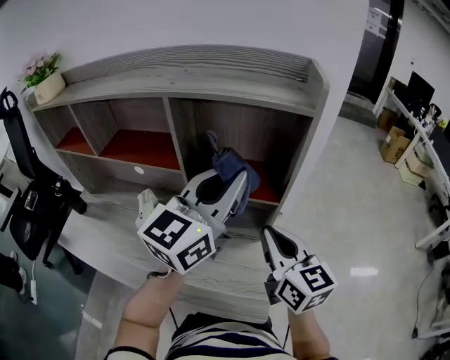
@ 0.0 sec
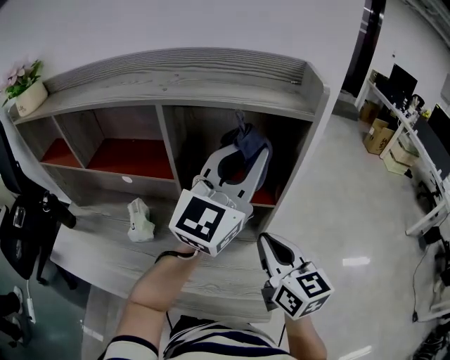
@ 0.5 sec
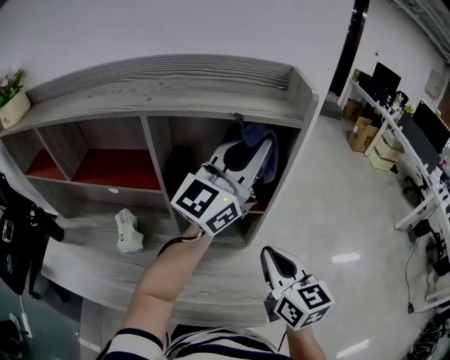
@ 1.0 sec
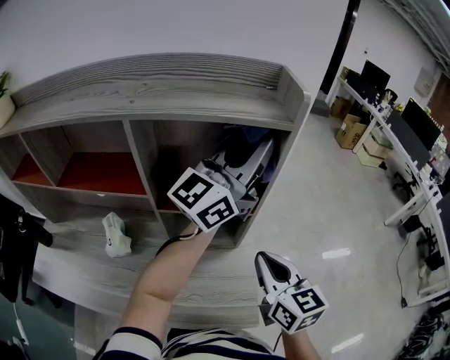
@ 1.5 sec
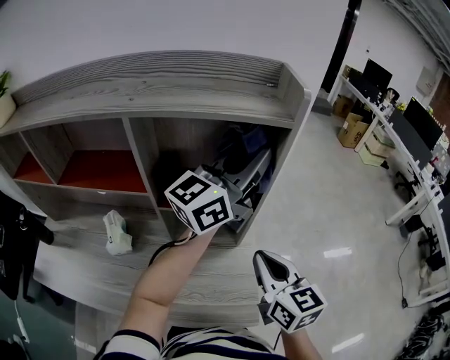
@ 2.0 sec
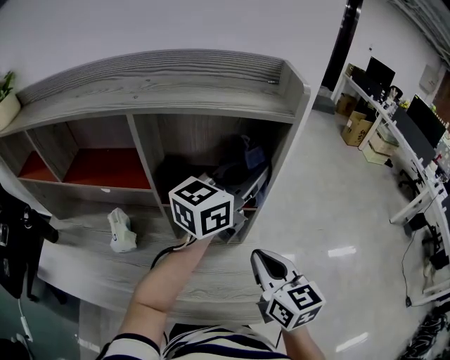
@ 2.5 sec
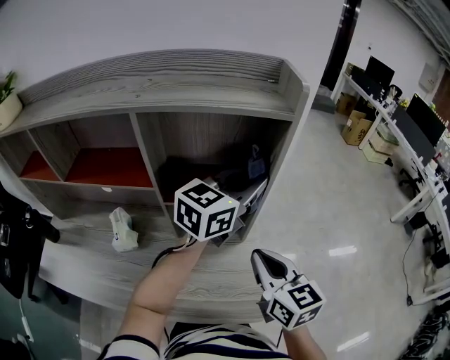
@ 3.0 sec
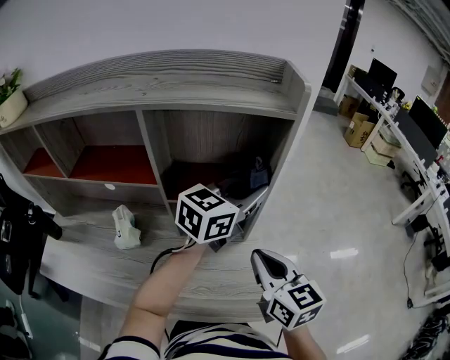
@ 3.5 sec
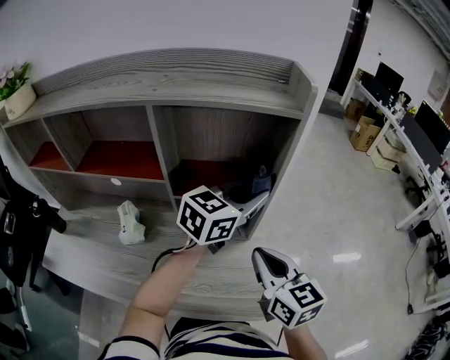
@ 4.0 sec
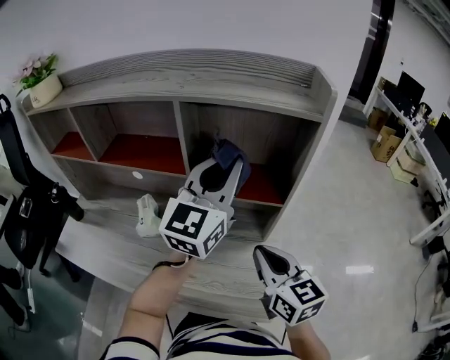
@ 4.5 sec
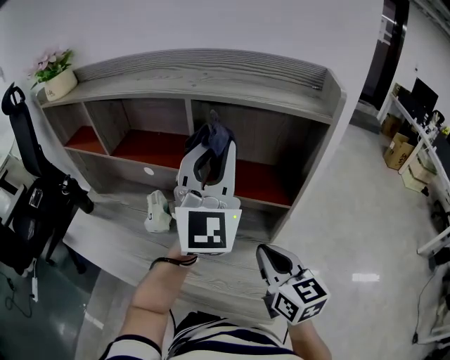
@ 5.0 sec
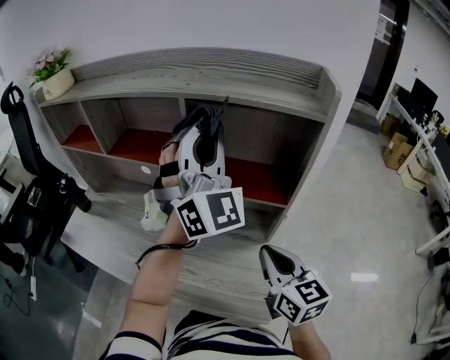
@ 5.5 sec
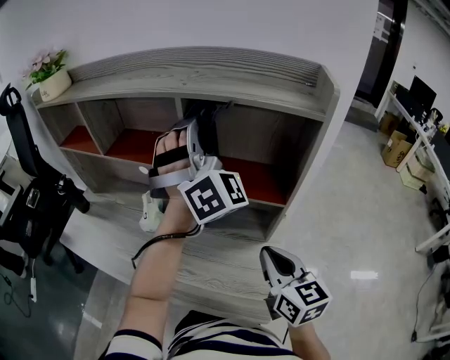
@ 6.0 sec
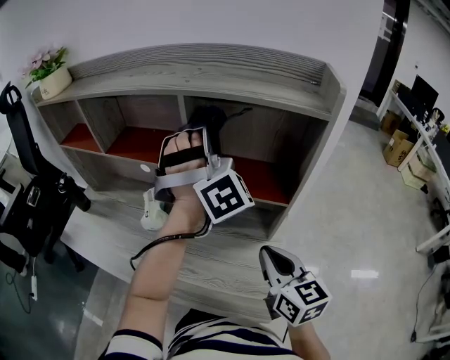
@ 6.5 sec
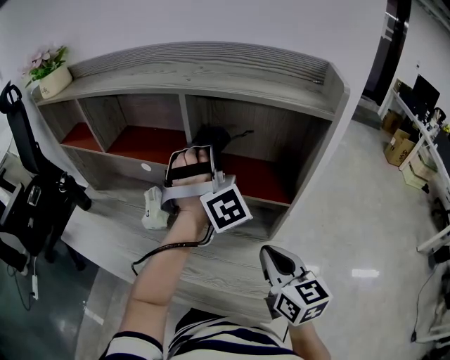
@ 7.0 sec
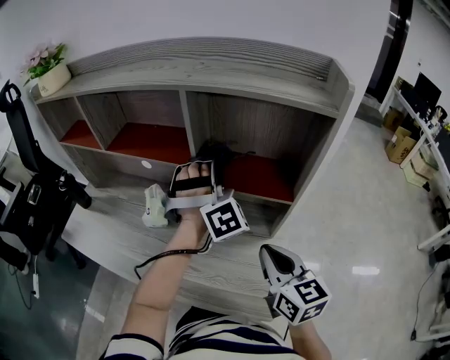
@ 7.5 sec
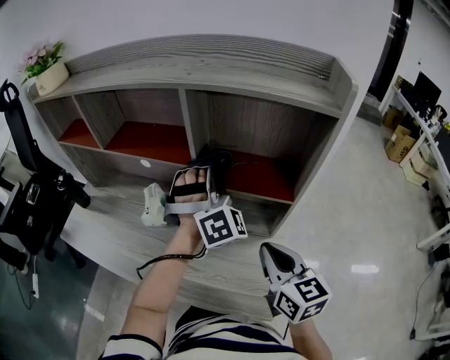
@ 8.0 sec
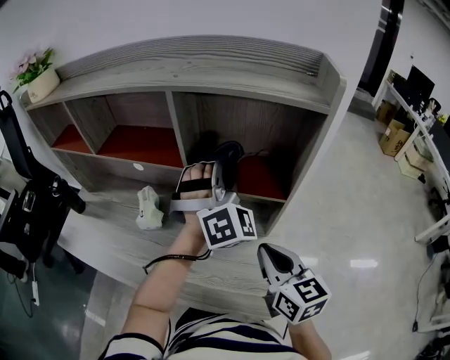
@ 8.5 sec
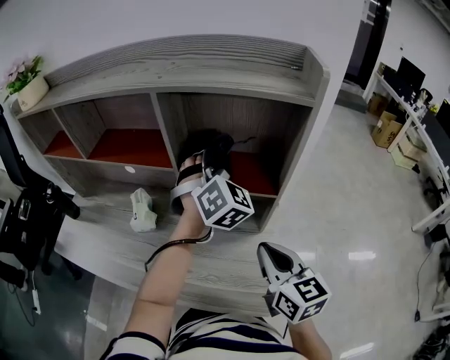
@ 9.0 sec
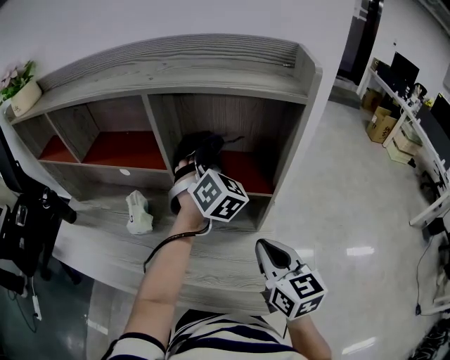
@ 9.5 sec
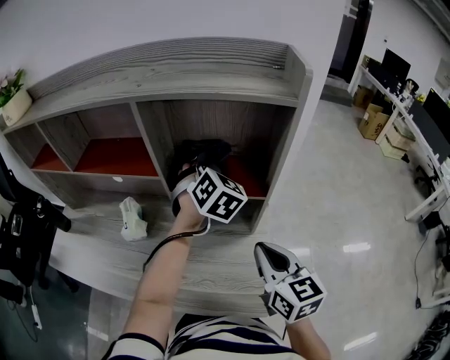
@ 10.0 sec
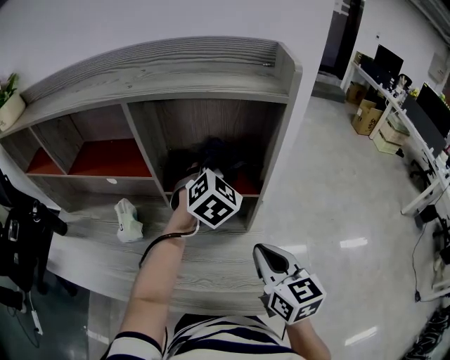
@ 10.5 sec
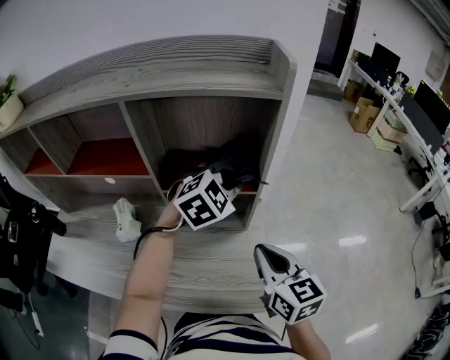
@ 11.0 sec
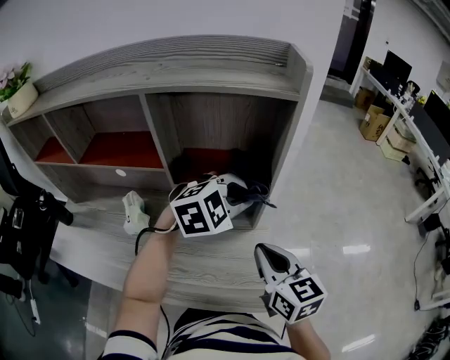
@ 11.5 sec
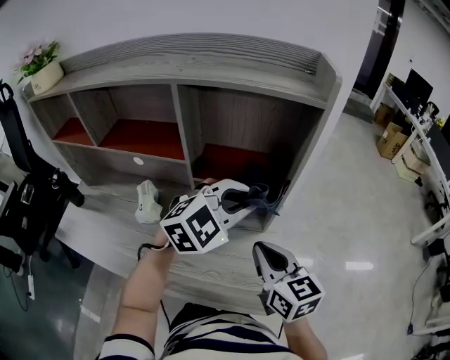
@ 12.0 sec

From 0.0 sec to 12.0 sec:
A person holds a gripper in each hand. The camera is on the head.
From 0.0 sec to 2.0 sec: The left gripper shifts about 10 cm forward and to the right, and swivels about 30 degrees.
From 2.0 sec to 4.0 sec: The left gripper moves downward, approximately 10 cm, and angles its fingers downward, by roughly 30 degrees.
From 4.0 sec to 6.0 sec: The left gripper ends up approximately 25 cm from where it was, and changes its angle by approximately 100 degrees.
From 6.0 sec to 8.0 sec: The left gripper is displaced downward by roughly 15 cm.
From 8.0 sec to 10.0 sec: The left gripper travels to the right by approximately 10 cm, and changes its angle by about 40 degrees.
From 10.0 sec to 12.0 sec: The left gripper ends up roughly 15 cm from where it was, and swivels about 40 degrees.

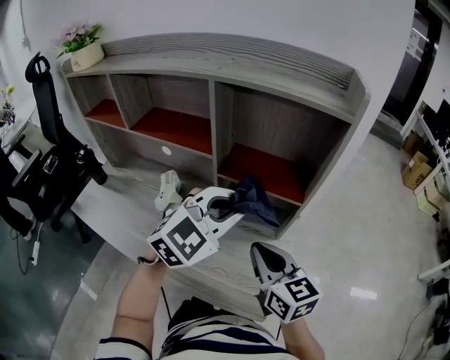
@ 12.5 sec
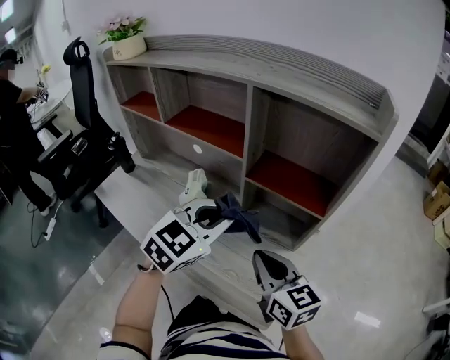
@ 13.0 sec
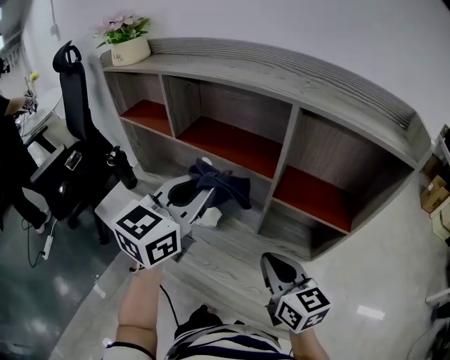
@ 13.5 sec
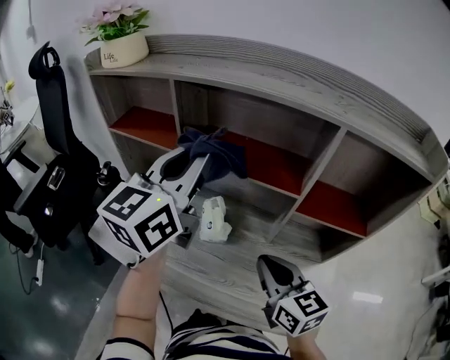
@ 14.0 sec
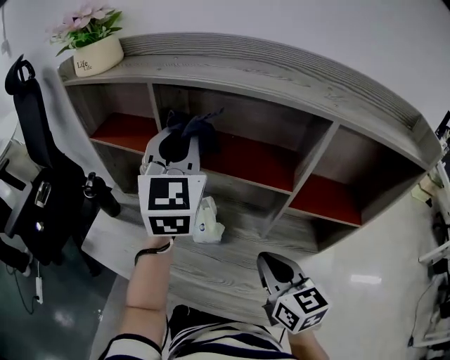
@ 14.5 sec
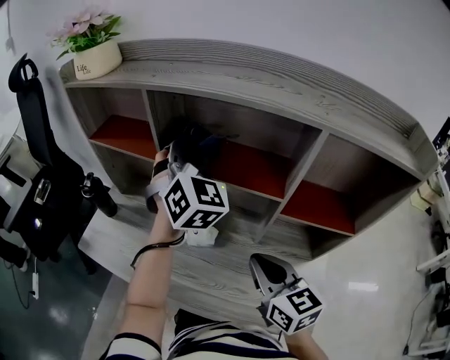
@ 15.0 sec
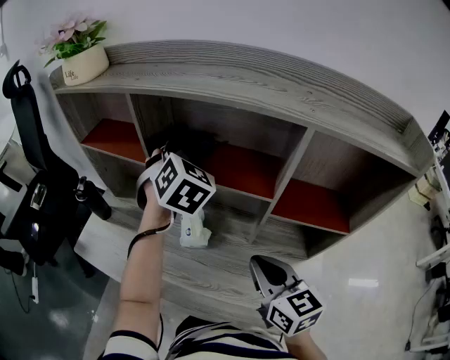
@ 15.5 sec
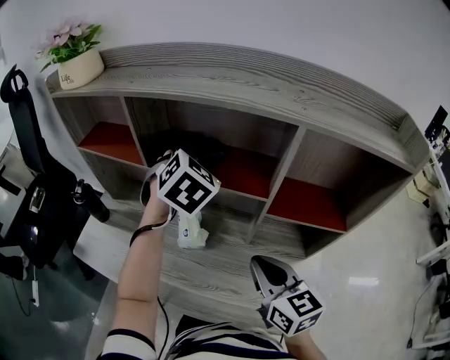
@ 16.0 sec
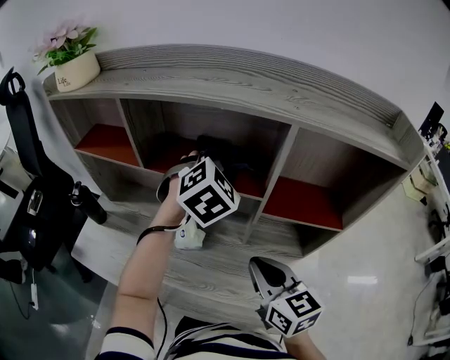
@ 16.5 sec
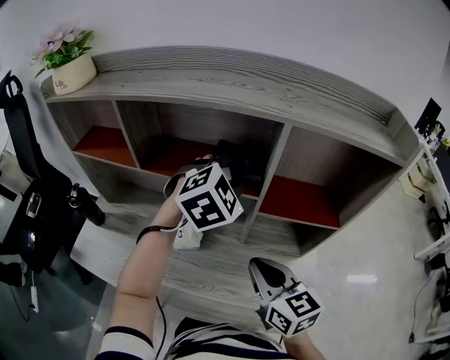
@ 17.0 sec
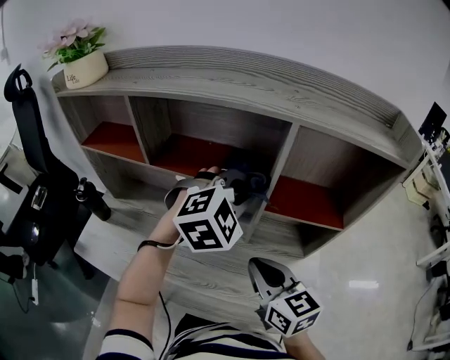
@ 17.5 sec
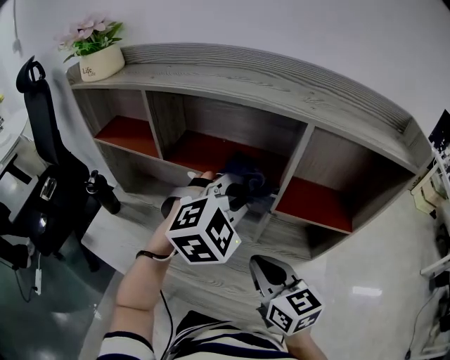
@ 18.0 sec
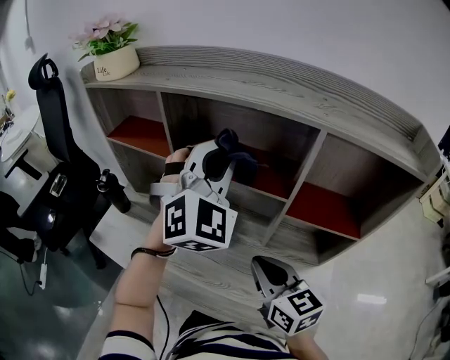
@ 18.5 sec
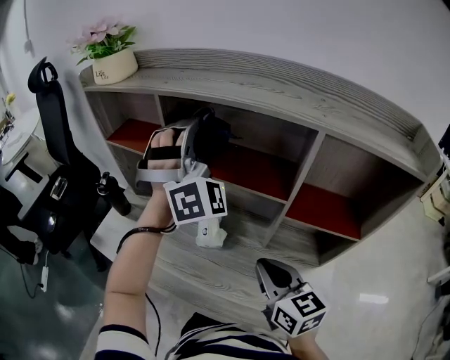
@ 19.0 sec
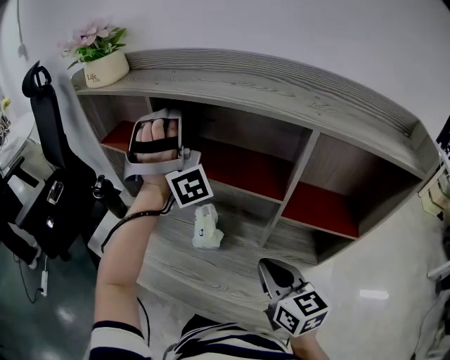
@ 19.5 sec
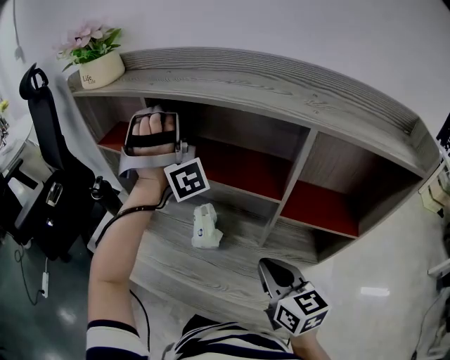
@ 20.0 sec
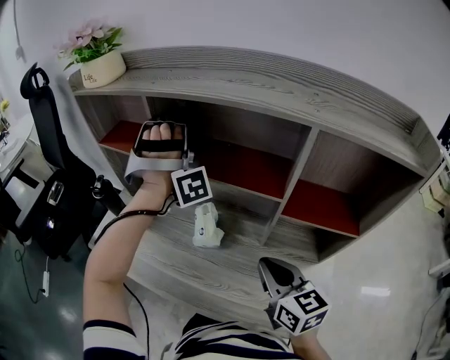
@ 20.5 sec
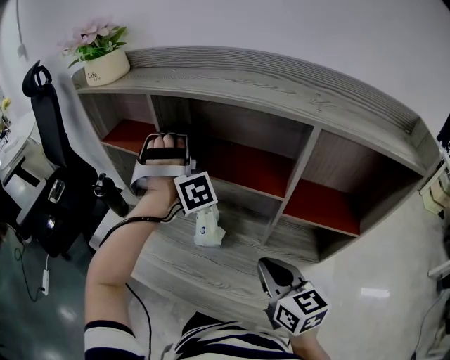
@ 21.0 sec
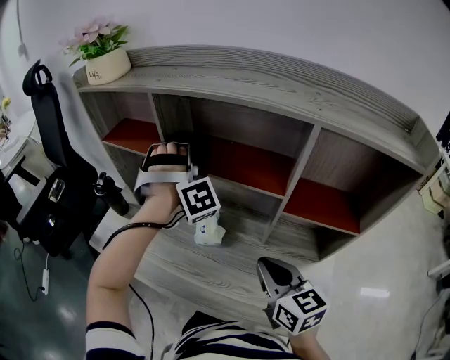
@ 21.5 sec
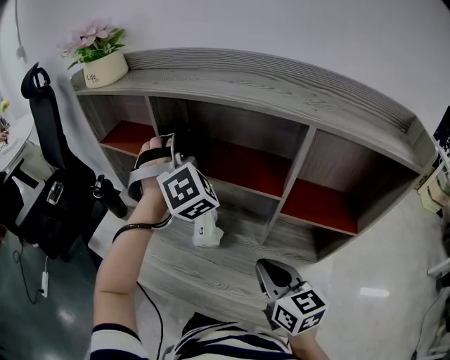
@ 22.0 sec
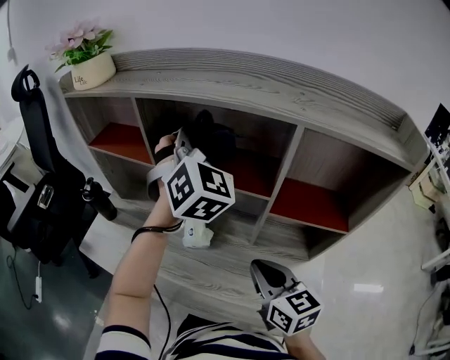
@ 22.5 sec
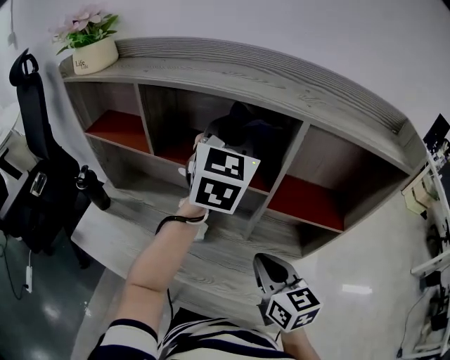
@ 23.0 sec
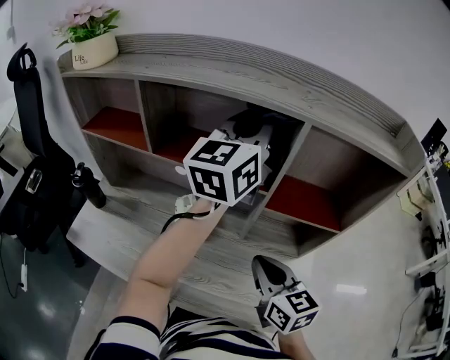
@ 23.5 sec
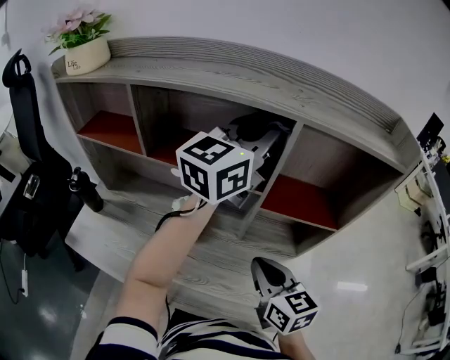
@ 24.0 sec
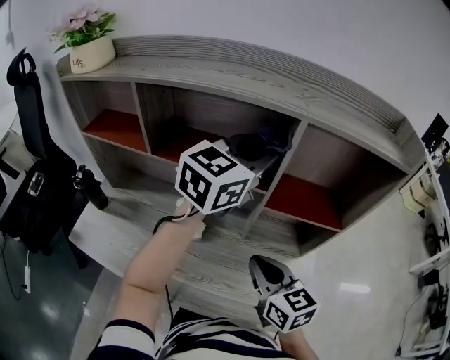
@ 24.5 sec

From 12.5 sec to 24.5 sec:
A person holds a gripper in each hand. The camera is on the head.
From 12.5 sec to 14.5 sec: The right gripper shifts approximately 20 cm to the left. The left gripper goes roughly 40 cm to the left, forward and upward, and changes its angle by some 50 degrees.
From 14.5 sec to 16.5 sec: The left gripper moves to the right and downward, about 20 cm, and points its fingers roughly 40 degrees further downward.
From 16.5 sec to 18.5 sec: The left gripper heads upward, to the left and backward, covering approximately 15 cm, and angles its fingers upward, by roughly 30 degrees.
From 18.5 sec to 20.5 sec: The left gripper goes about 15 cm forward and to the left, and rotates around the line of its fingers by roughly 60 degrees, clockwise from behind.
From 20.5 sec to 22.5 sec: The left gripper heads to the right and backward, covering about 10 cm, goes downward and returns, some 10 cm each way, and twists approximately 70 degrees counterclockwise, seen from behind.
From 22.5 sec to 24.5 sec: The left gripper moves about 15 cm, and turns by roughly 60 degrees.

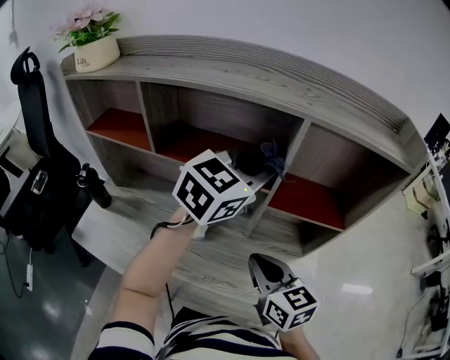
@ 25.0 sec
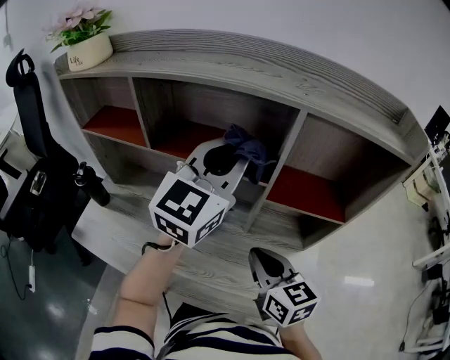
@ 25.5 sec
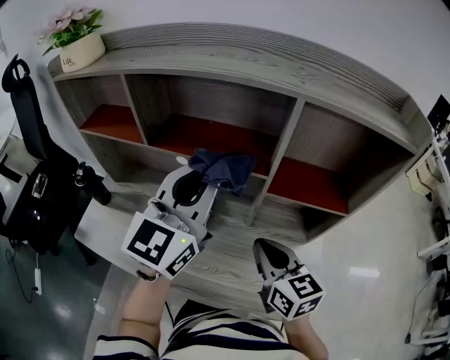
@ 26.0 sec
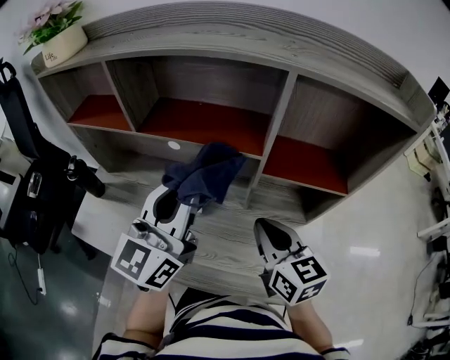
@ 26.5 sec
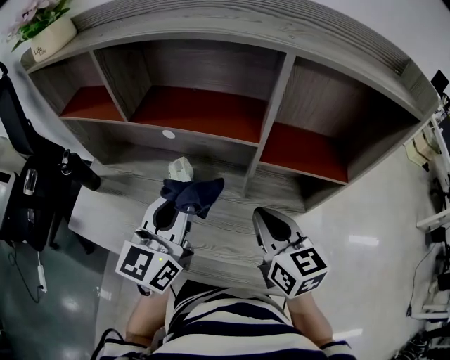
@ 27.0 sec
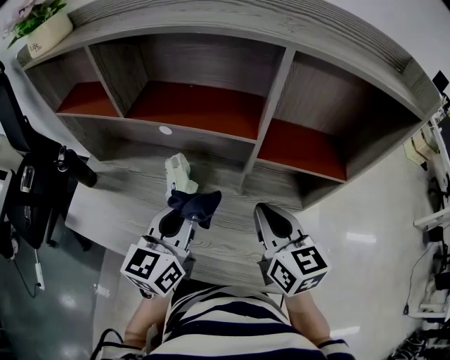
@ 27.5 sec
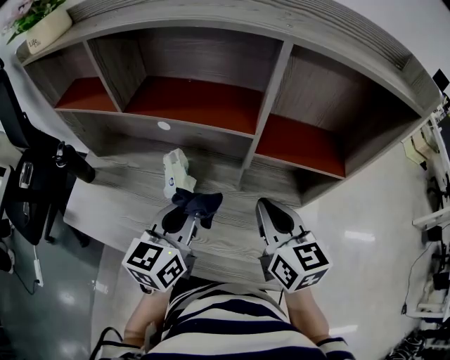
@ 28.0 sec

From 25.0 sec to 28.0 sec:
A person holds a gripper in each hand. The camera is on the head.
From 25.0 sec to 26.5 sec: The left gripper goes roughly 15 cm to the left and backward, and turns by some 40 degrees.
From 26.5 sec to 28.0 sec: The left gripper heads downward, covering some 15 cm, and changes its angle by roughly 30 degrees.
